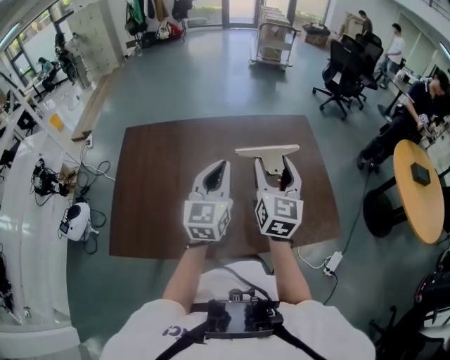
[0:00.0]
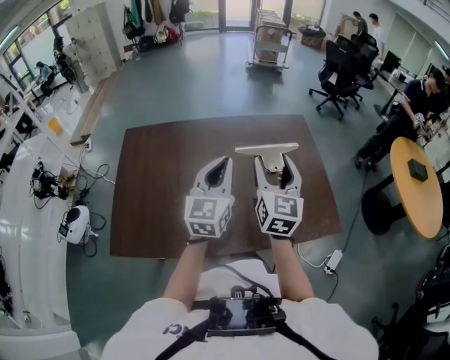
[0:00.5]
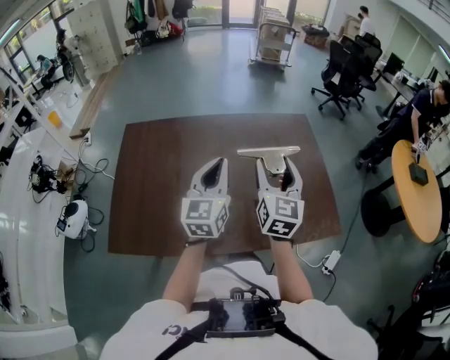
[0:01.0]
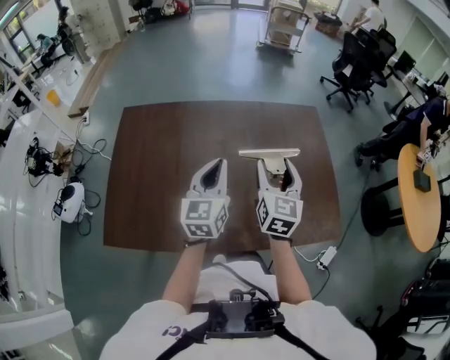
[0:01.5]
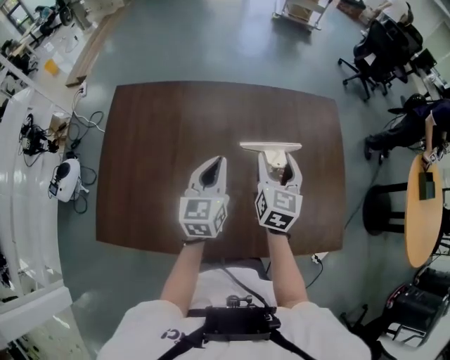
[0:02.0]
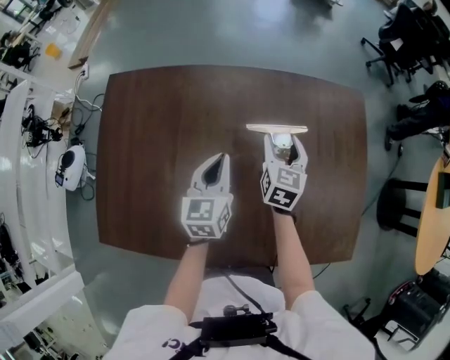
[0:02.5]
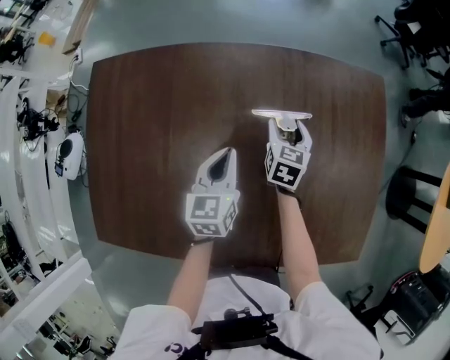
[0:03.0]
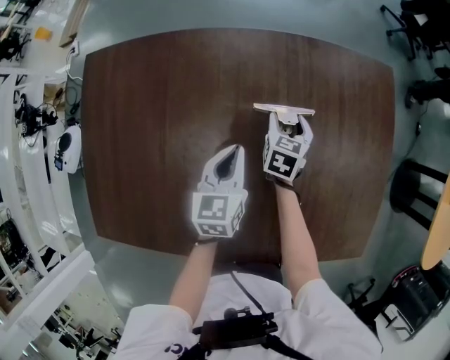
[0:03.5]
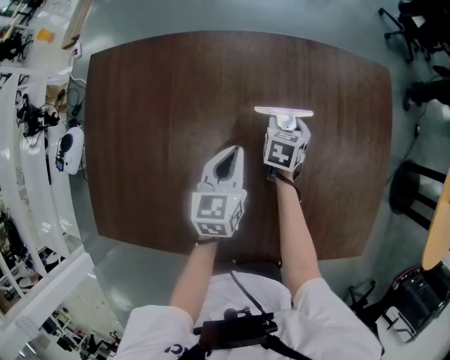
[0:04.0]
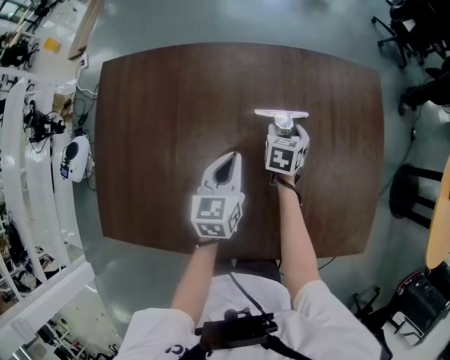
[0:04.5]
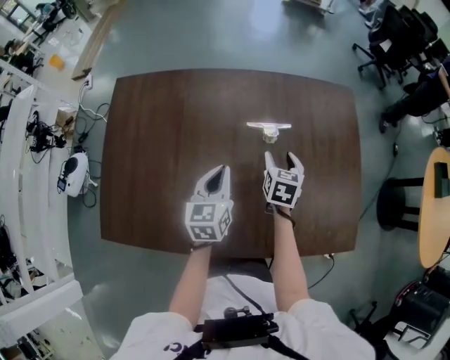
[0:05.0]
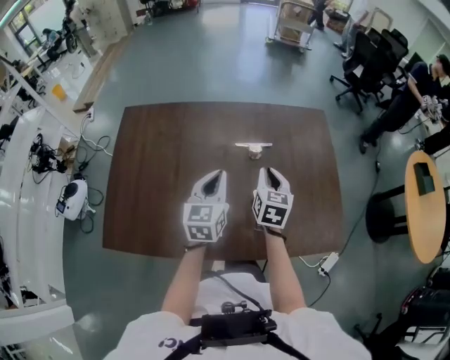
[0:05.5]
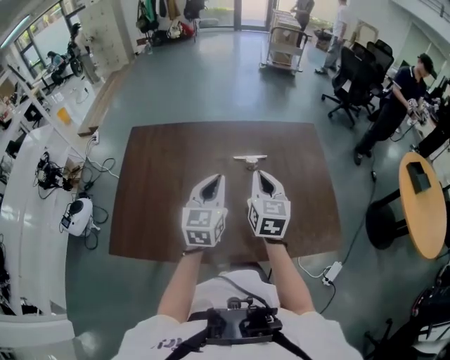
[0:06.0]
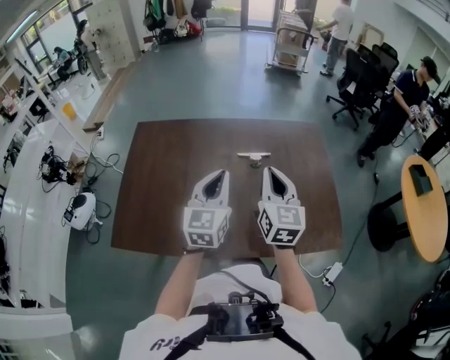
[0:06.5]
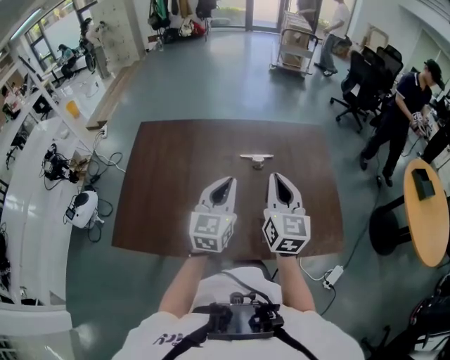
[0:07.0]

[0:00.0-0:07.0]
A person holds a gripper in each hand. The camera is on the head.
0:00.0 to 0:02.0: The left gripper is displaced downward and forward by some 20 cm, and changes its angle by roughly 20 degrees. The right gripper heads forward and downward, covering approximately 20 cm.
0:02.0 to 0:03.5: The right gripper heads downward and forward, covering about 30 cm, and changes its angle by some 30 degrees. Meanwhile the left gripper heads downward and forward, covering about 20 cm.
0:03.5 to 0:05.0: Both grippers move backward and upward, some 15 cm.
0:05.0 to 0:07.0: The right gripper travels upward and backward by some 35 cm, angles its fingers upward, by approximately 40 degrees, and closes. Meanwhile the left gripper goes roughly 25 cm upward and backward, and swivels roughly 30 degrees.

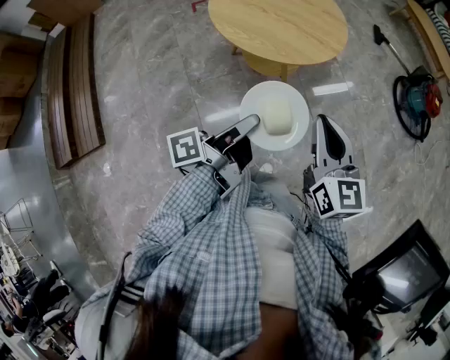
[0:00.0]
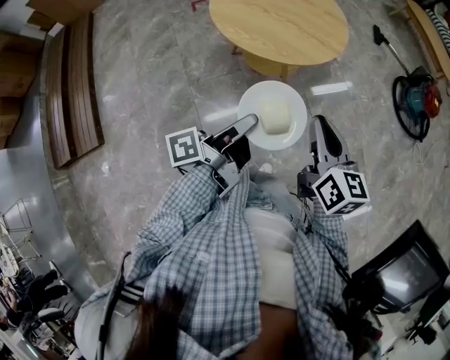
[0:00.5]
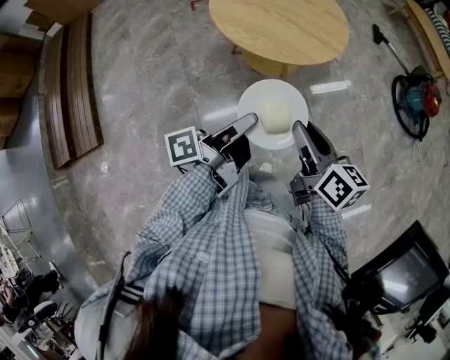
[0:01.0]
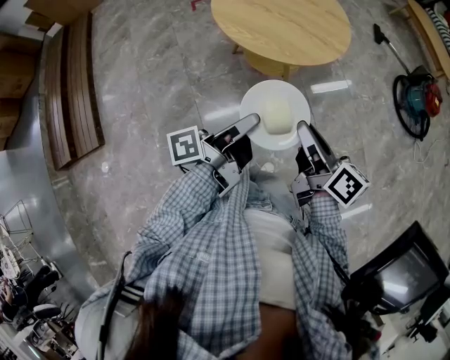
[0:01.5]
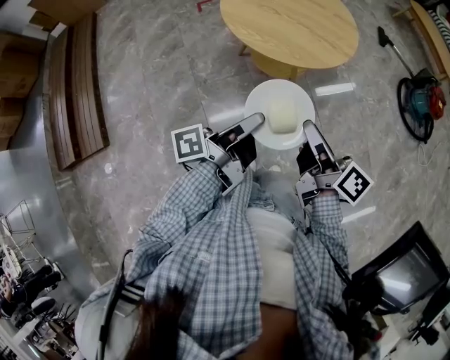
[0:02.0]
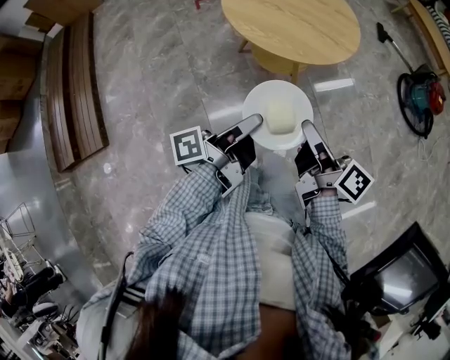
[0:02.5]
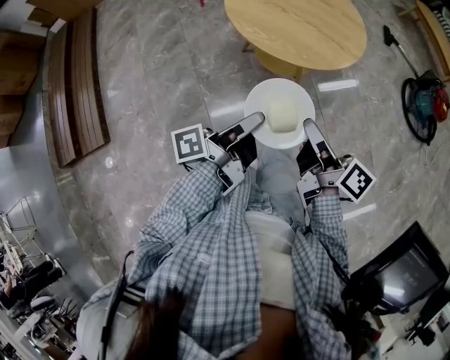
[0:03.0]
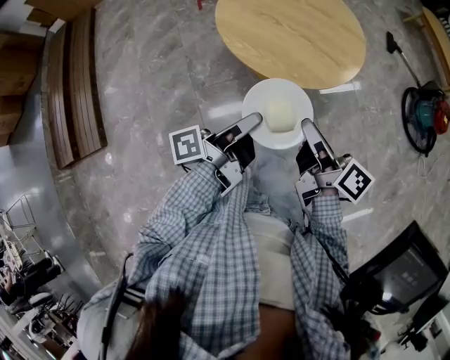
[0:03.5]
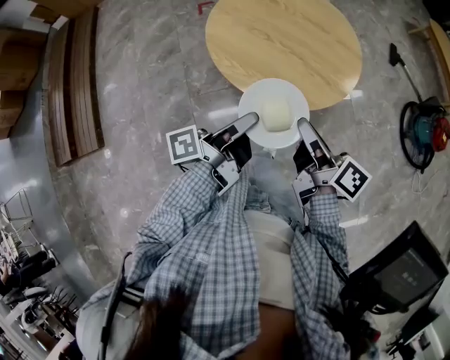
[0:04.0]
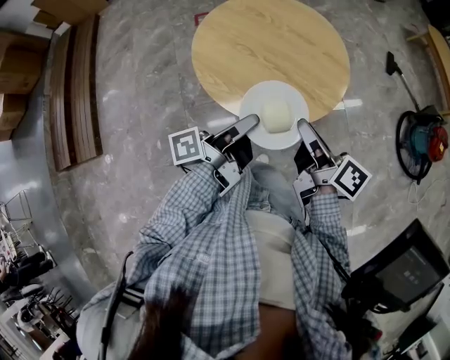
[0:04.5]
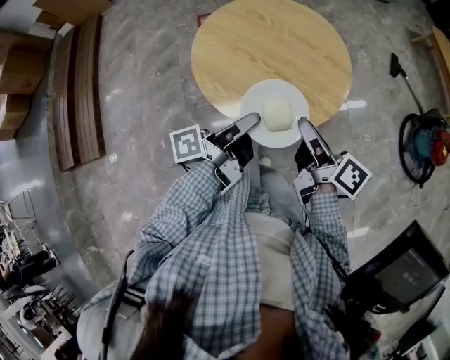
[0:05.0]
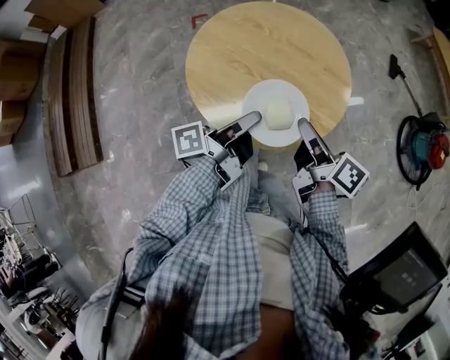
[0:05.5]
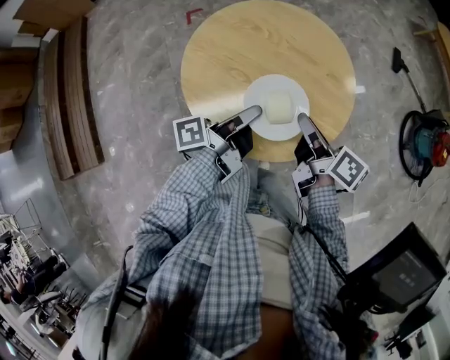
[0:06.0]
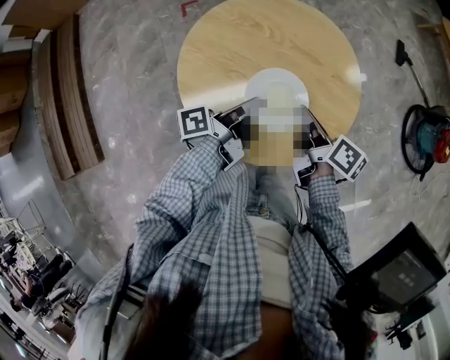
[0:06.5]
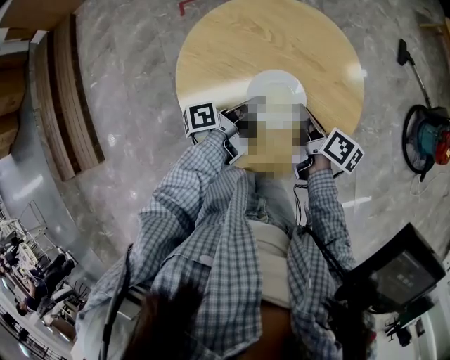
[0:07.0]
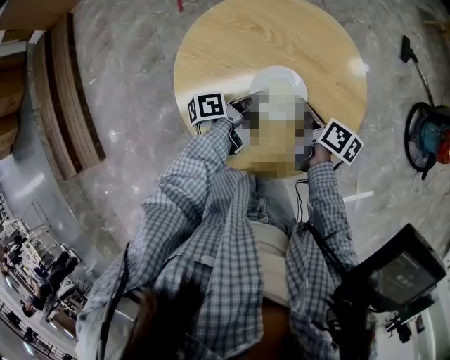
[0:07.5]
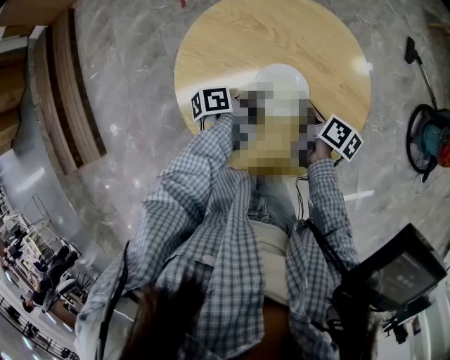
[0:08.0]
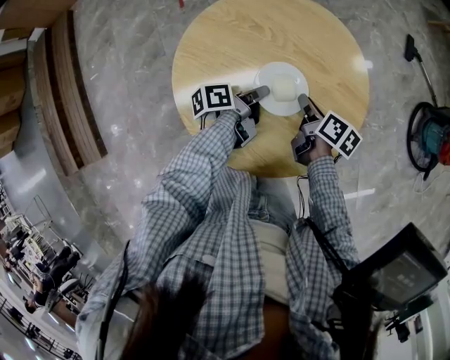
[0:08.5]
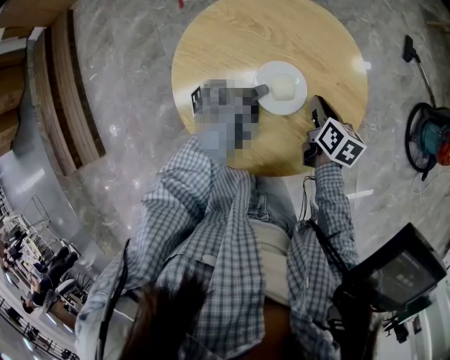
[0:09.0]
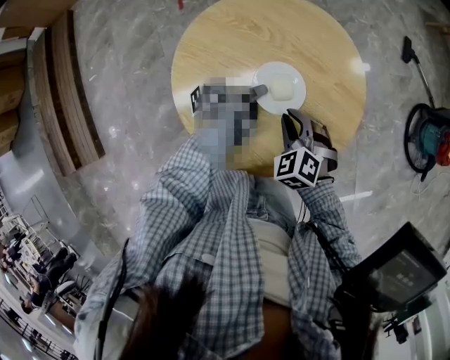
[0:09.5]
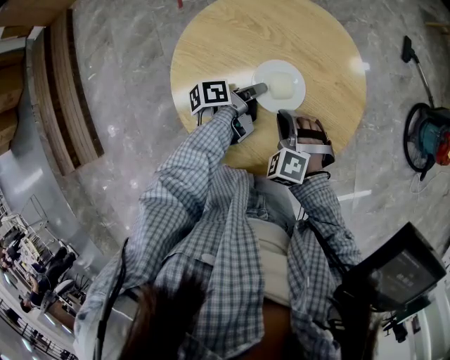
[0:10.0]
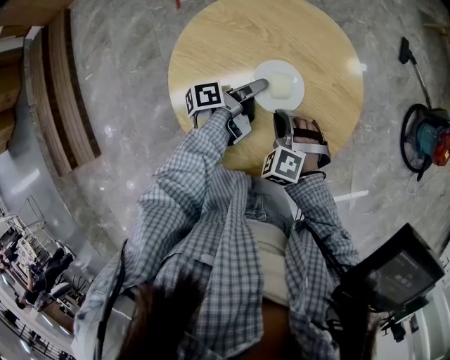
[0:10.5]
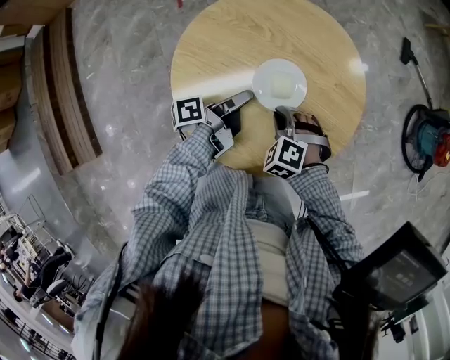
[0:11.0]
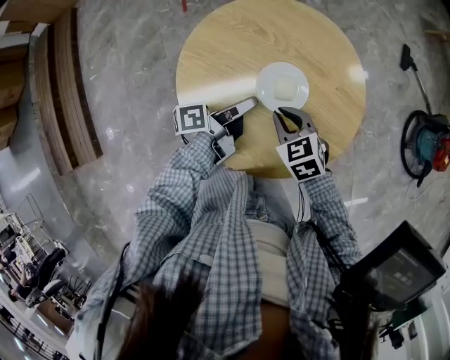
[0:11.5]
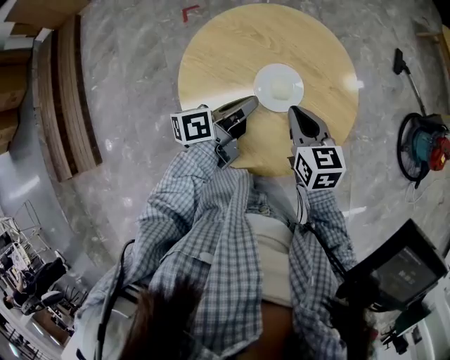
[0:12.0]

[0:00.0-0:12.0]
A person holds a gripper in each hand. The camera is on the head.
0:00.0 to 0:02.0: The right gripper shifts by some 5 cm, and rolls clockwise, seen from behind, by roughly 60 degrees.
0:02.0 to 0:04.0: The right gripper changes place by roughly 20 cm.
0:04.0 to 0:06.0: The right gripper ends up roughly 20 cm from where it was.
0:06.0 to 0:08.0: The right gripper is displaced downward by about 15 cm.
0:08.0 to 0:10.0: The right gripper shifts by roughly 10 cm, and rolls counterclockwise, seen from behind, by some 120 degrees.
0:10.0 to 0:12.0: The right gripper heads upward, covering approximately 10 cm, and rolls clockwise, seen from behind, by some 70 degrees.

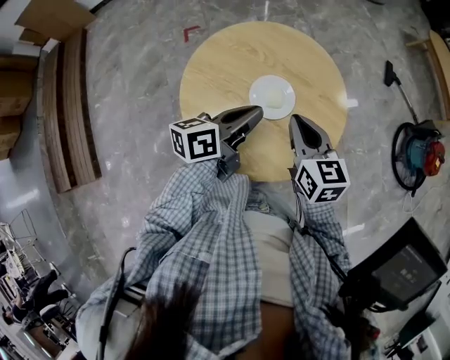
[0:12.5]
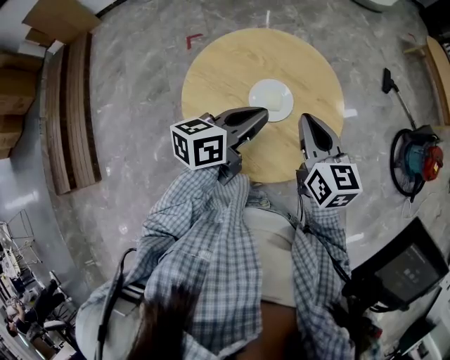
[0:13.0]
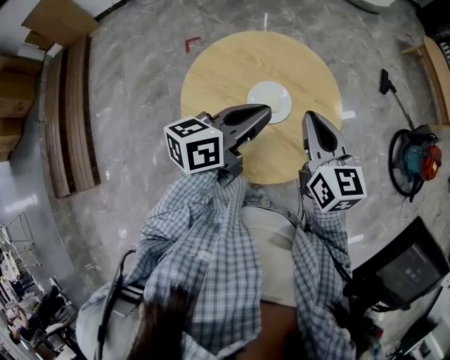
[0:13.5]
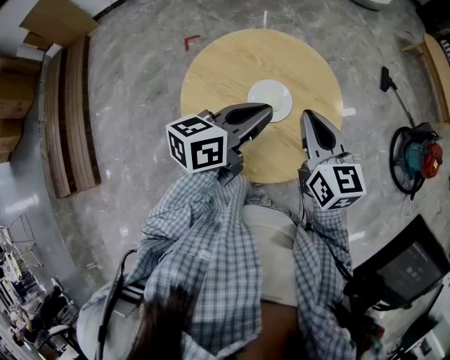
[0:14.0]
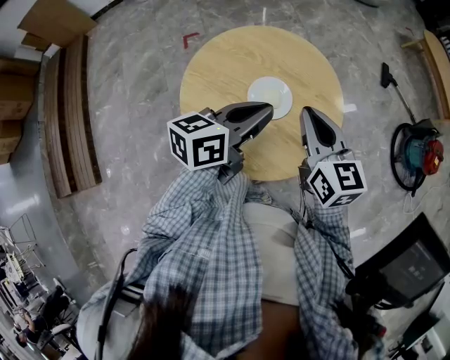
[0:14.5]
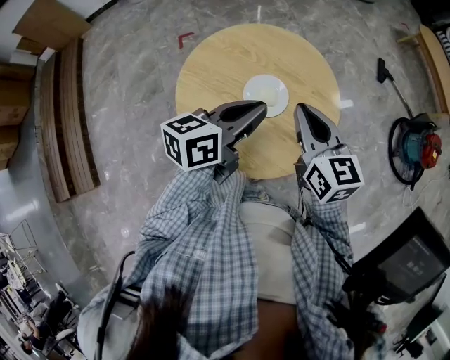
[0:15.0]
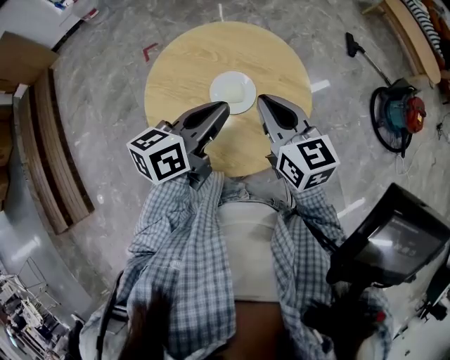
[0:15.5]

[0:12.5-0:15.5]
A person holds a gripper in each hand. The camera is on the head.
0:12.5 to 0:14.0: The right gripper travels upward by roughly 5 cm.

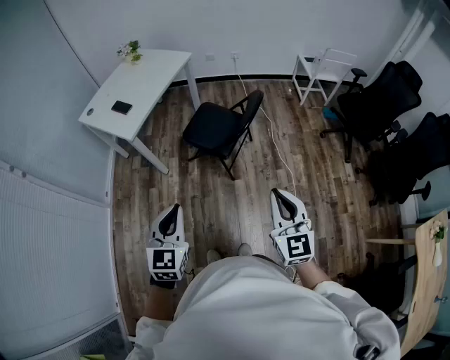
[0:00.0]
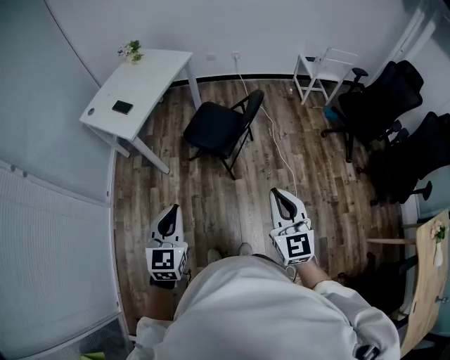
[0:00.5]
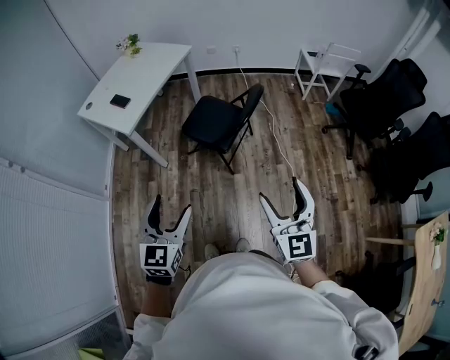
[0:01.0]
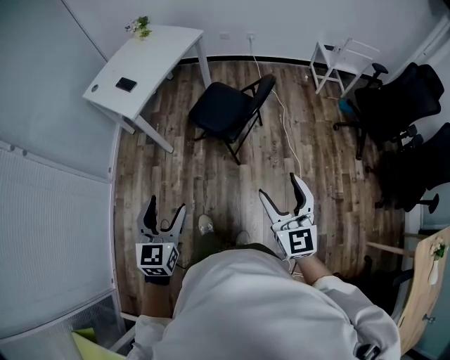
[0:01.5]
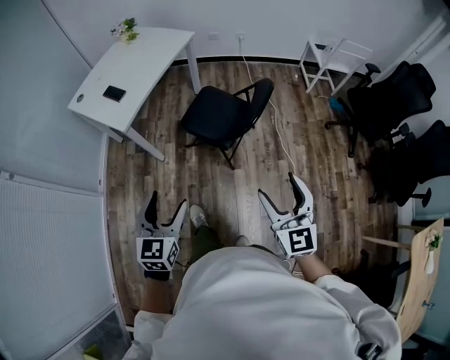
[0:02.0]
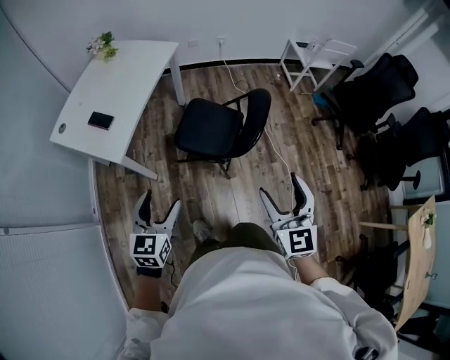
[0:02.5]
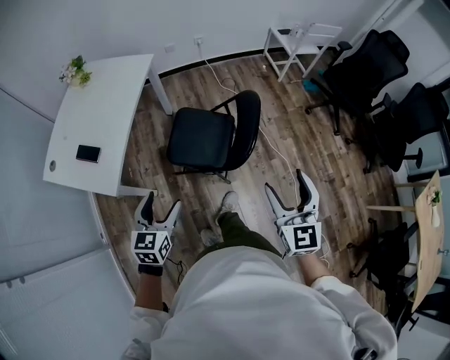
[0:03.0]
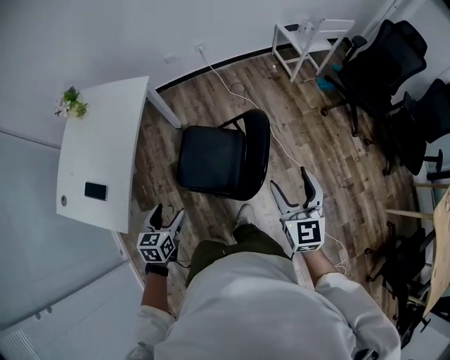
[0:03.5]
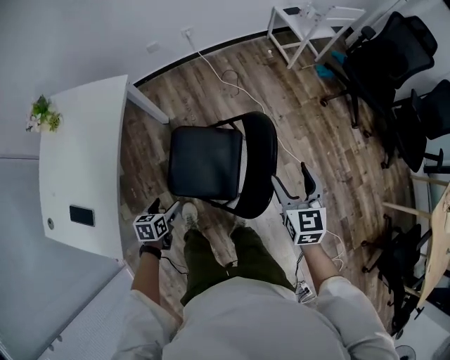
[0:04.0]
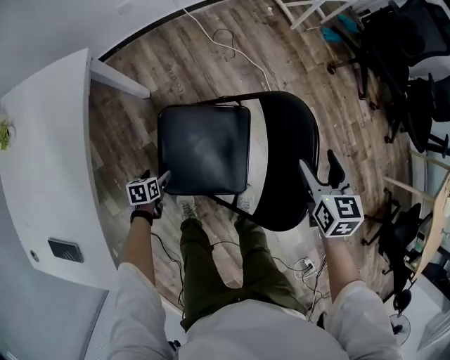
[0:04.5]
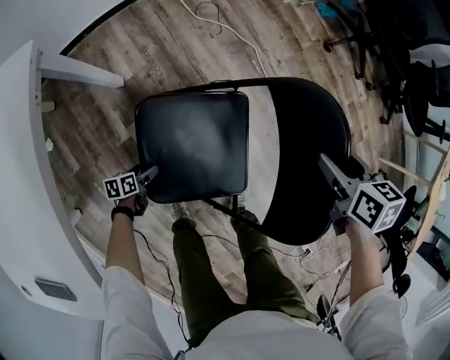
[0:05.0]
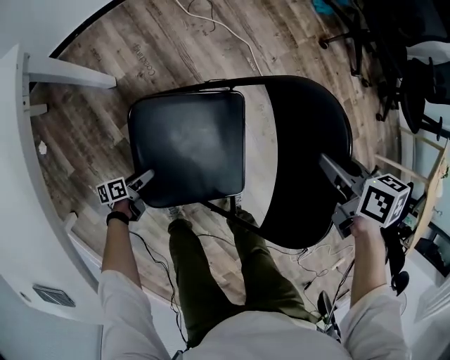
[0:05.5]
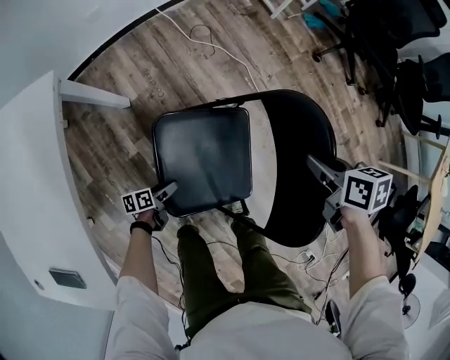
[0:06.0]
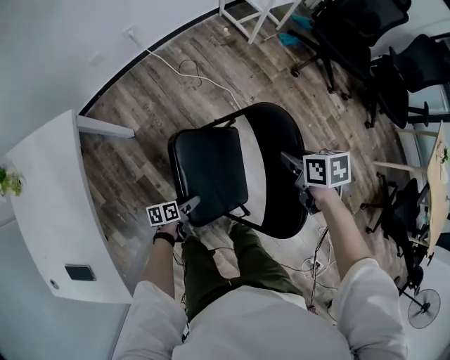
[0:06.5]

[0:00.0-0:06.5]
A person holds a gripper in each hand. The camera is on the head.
0:00.0 to 0:02.0: The left gripper moves forward and downward, some 10 cm, and opens its fingers; the right gripper shifts approximately 10 cm forward, and opens.
0:02.0 to 0:04.5: The two grippers travel together, roughly 60 cm. The right gripper points its fingers some 30 degrees further downward. Meanwhile the left gripper angles its fingers downward, by roughly 50 degrees.
0:04.5 to 0:06.5: The right gripper heads to the right, covering some 5 cm, travels downward and back again, some 10 cm each way, swivels some 30 degrees, and closes its fingers, while the left gripper travels to the right and upward by about 25 cm, and changes its angle by some 30 degrees.
